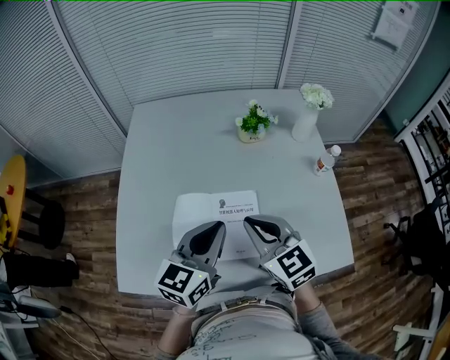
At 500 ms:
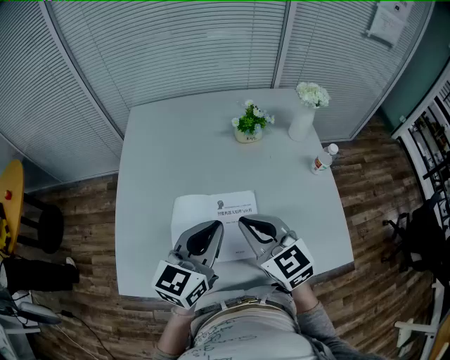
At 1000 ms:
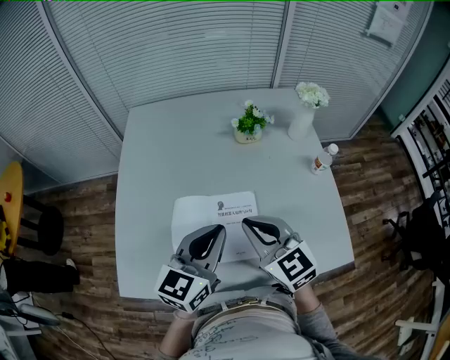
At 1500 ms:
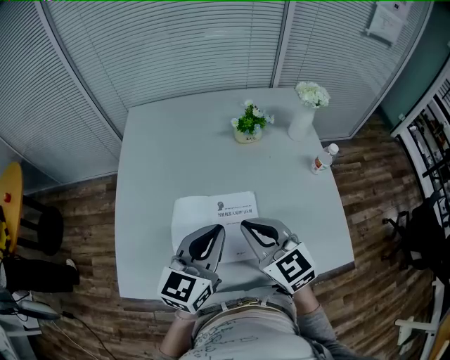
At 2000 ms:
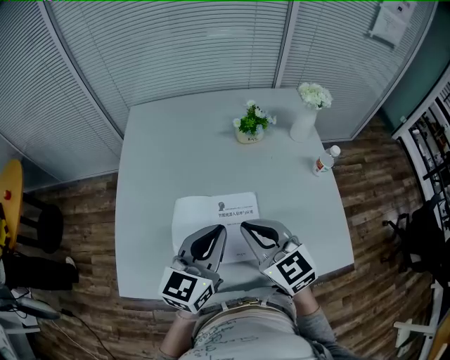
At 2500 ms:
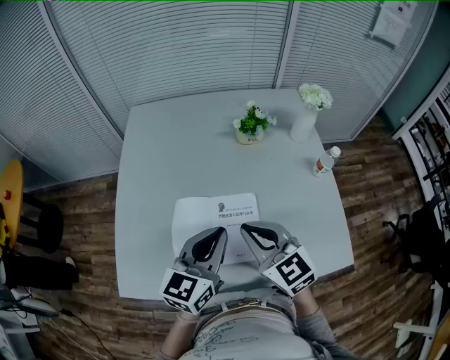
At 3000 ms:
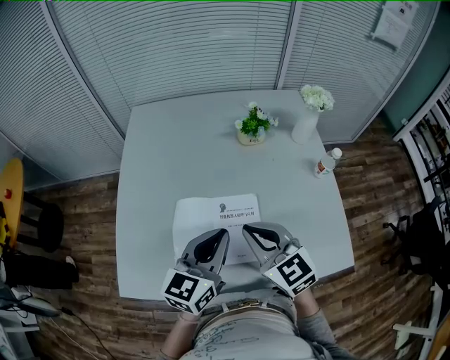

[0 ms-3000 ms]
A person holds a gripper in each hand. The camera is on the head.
0 ms to 3000 ms: The grippers move only a little.

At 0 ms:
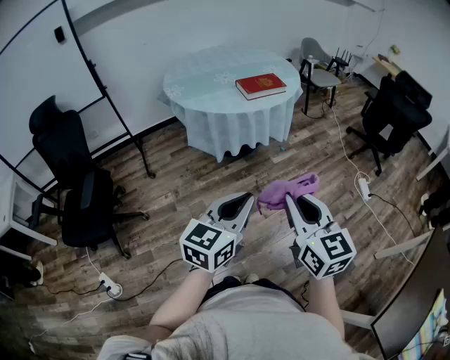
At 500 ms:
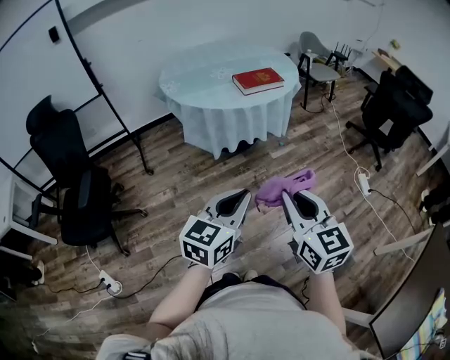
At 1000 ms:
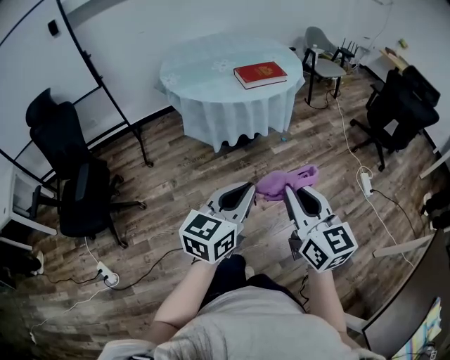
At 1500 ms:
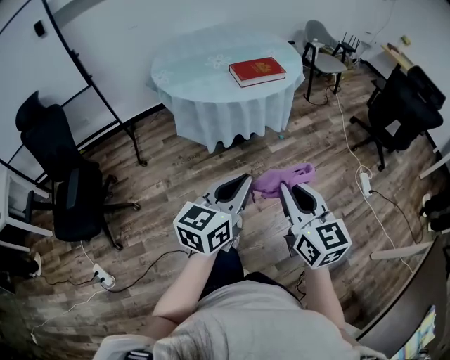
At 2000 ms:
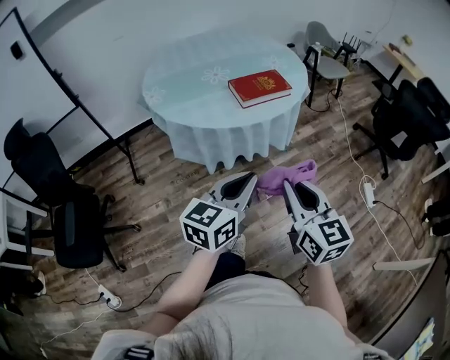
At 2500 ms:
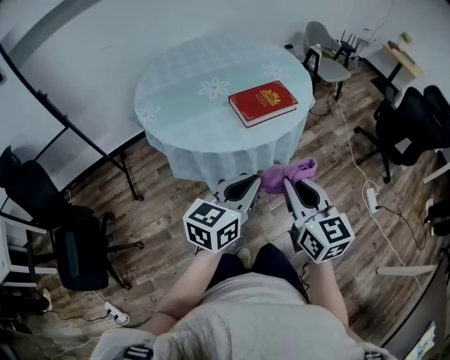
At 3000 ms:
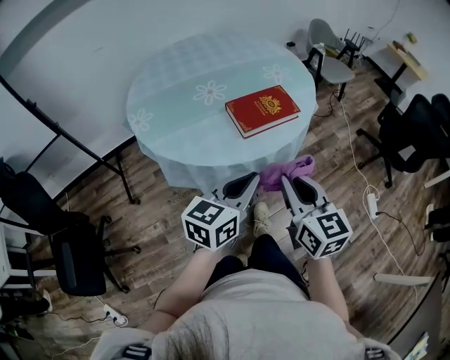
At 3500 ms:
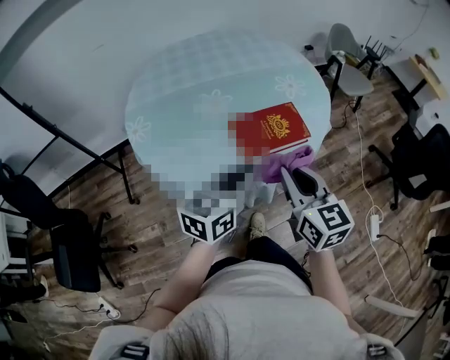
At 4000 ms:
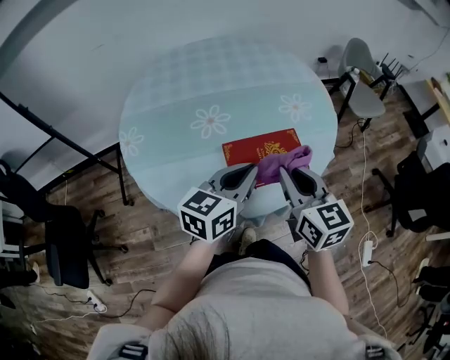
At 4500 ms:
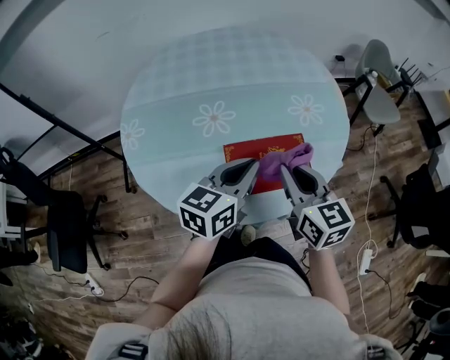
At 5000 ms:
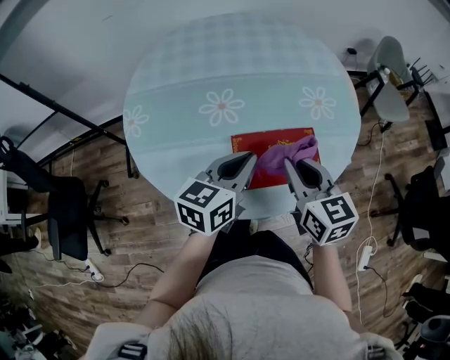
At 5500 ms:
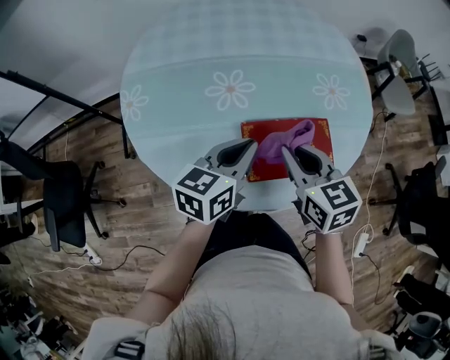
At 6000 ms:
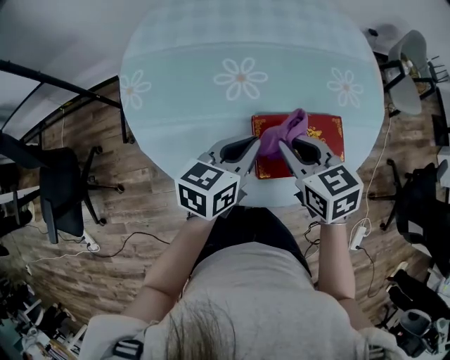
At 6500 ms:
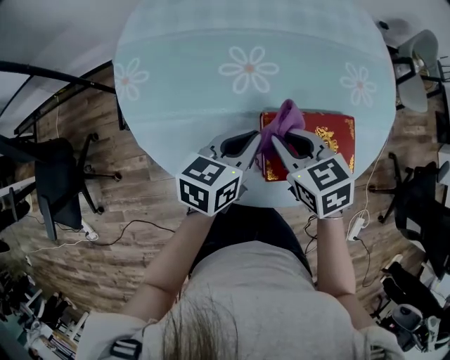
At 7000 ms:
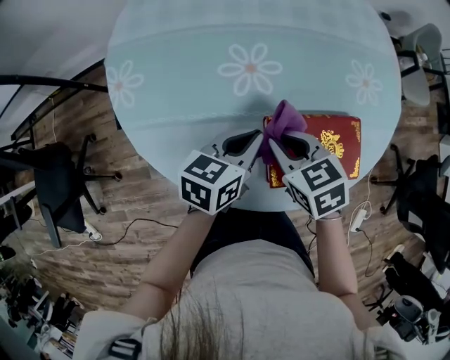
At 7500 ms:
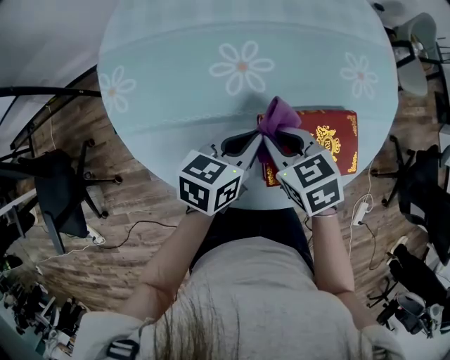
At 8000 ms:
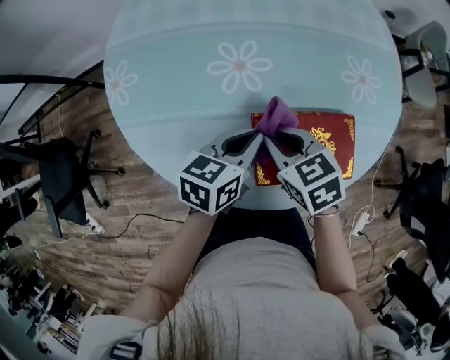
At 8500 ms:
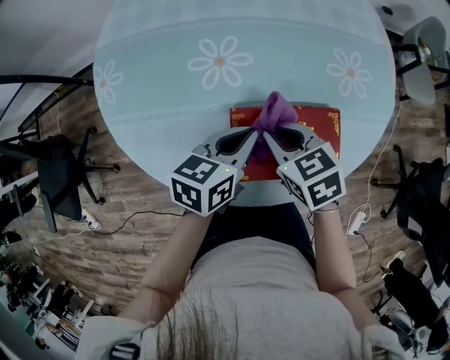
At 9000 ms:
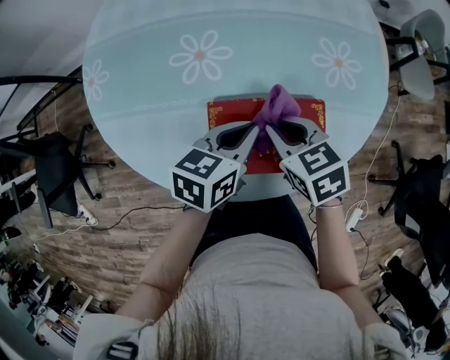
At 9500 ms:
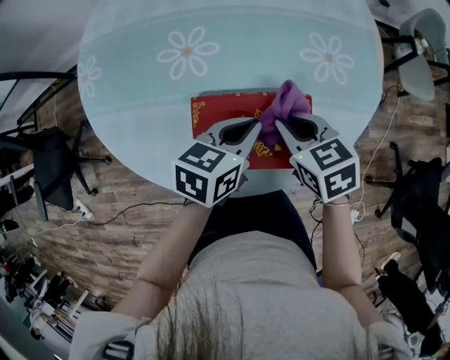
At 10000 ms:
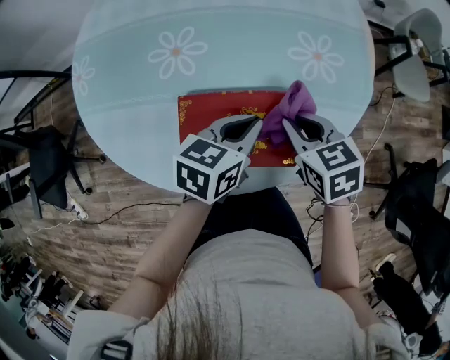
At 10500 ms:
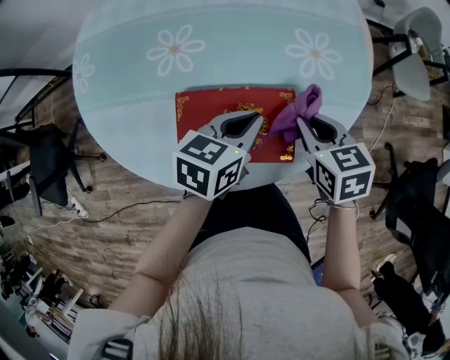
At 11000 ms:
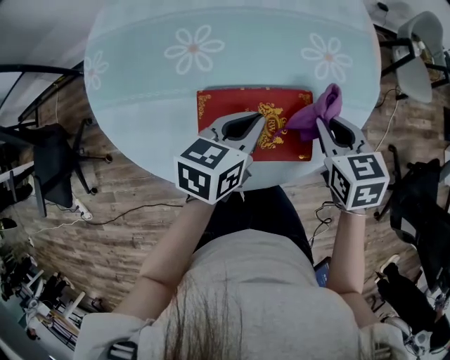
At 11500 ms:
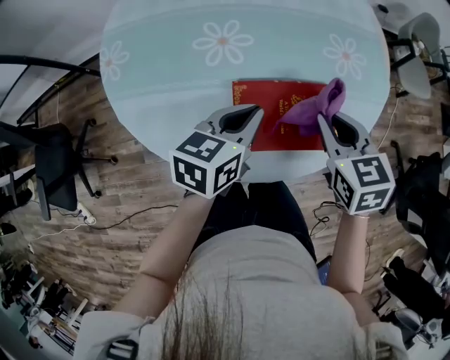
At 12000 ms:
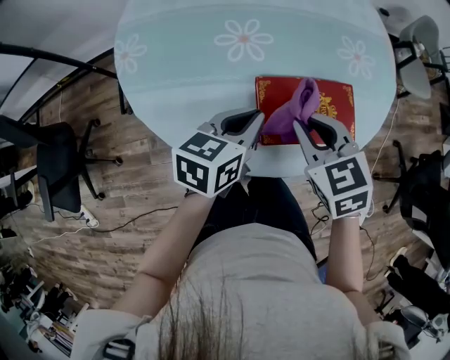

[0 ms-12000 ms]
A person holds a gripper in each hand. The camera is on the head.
0 ms to 2000 ms: Both grippers travel together forward, some 25 cm.
2000 ms to 4000 ms: The pair of grippers is taken forward, approximately 40 cm.
4000 ms to 6000 ms: The left gripper moves downward, to the left and forward, approximately 15 cm; the right gripper shifts some 15 cm to the left, downward and forward, and swivels approximately 30 degrees.
6000 ms to 8000 ms: Both grippers travel together downward, about 5 cm.
8000 ms to 10000 ms: Both grippers move to the right, roughly 20 cm.
10000 ms to 12000 ms: The left gripper travels to the left and backward by roughly 20 cm, while the right gripper heads to the left, backward and upward, covering approximately 20 cm.

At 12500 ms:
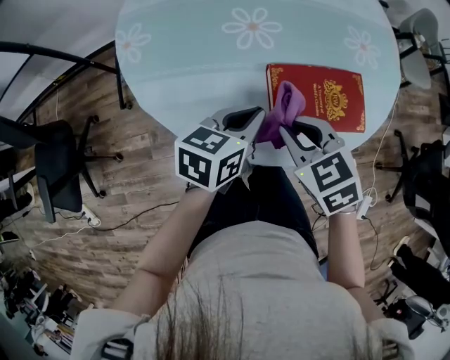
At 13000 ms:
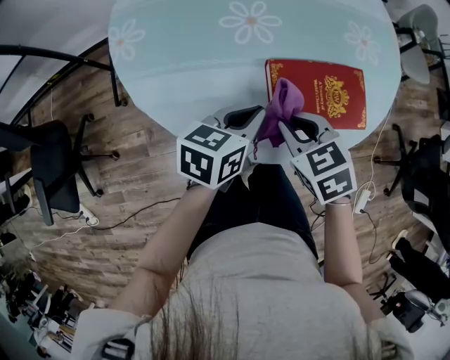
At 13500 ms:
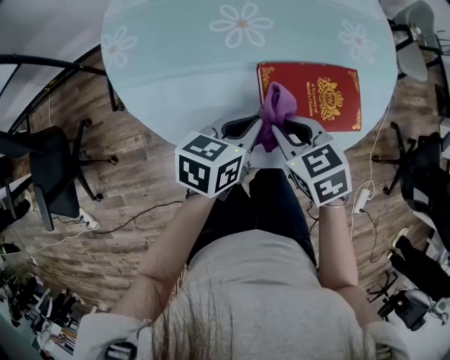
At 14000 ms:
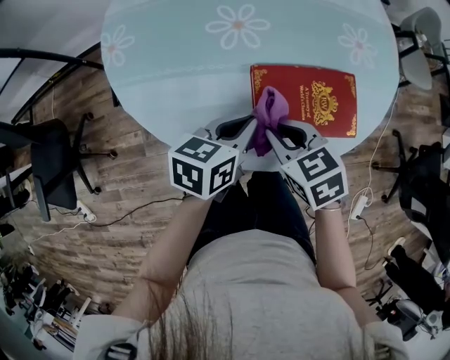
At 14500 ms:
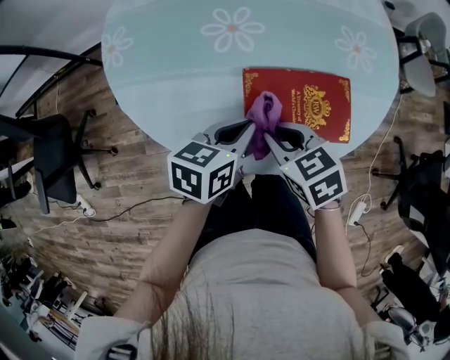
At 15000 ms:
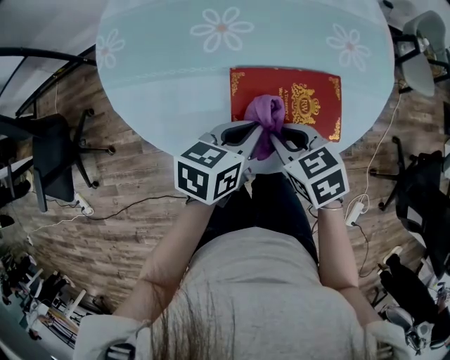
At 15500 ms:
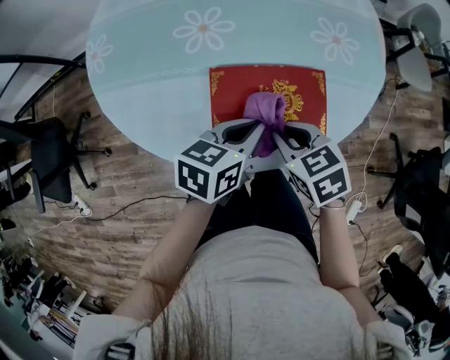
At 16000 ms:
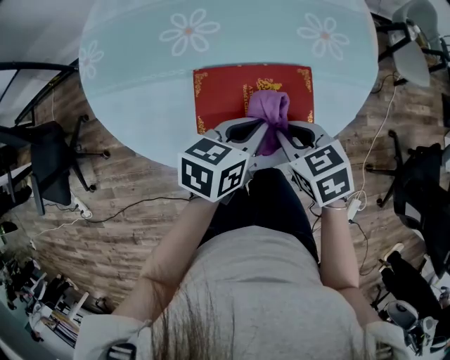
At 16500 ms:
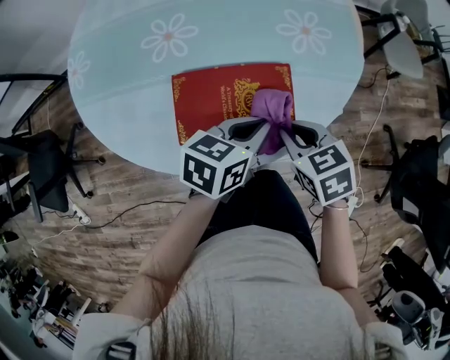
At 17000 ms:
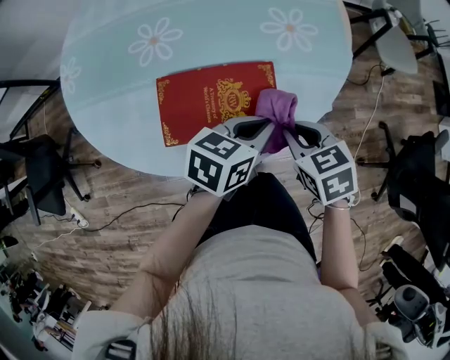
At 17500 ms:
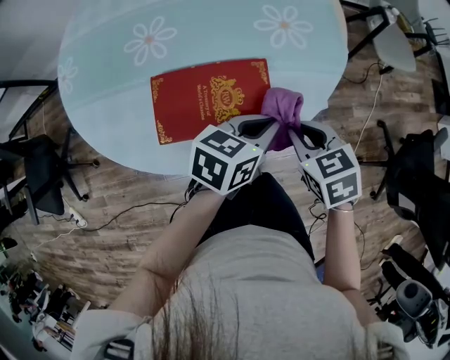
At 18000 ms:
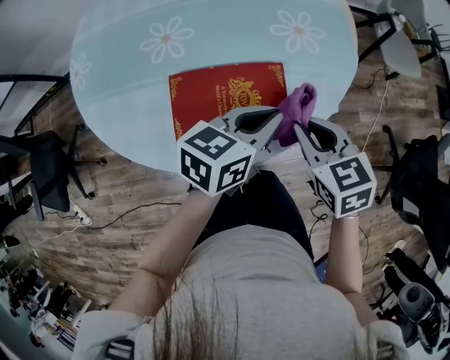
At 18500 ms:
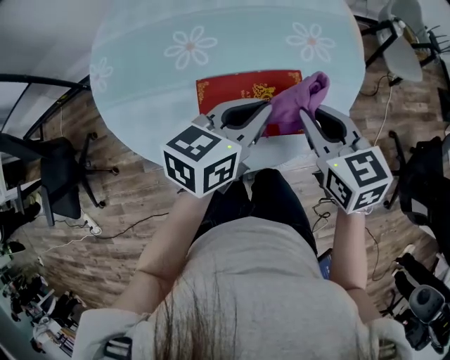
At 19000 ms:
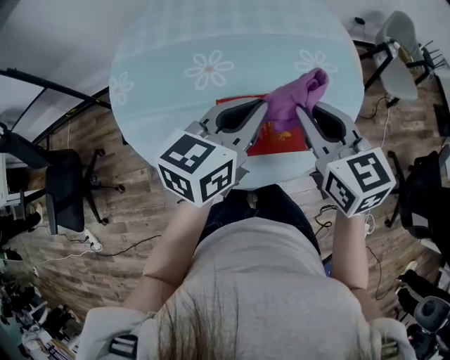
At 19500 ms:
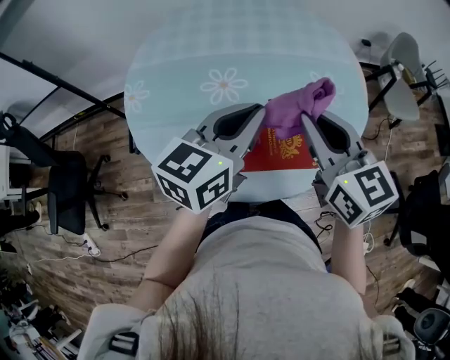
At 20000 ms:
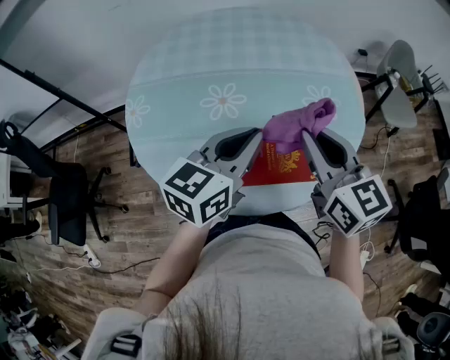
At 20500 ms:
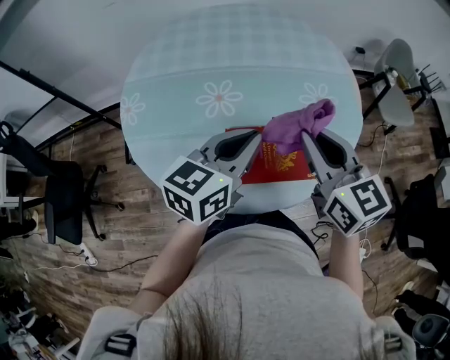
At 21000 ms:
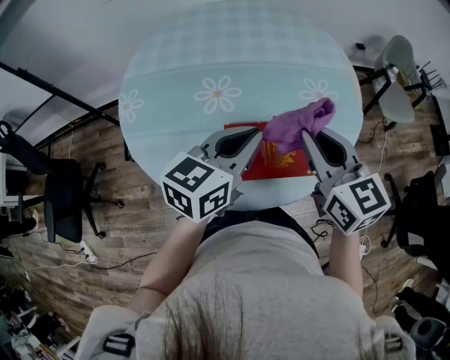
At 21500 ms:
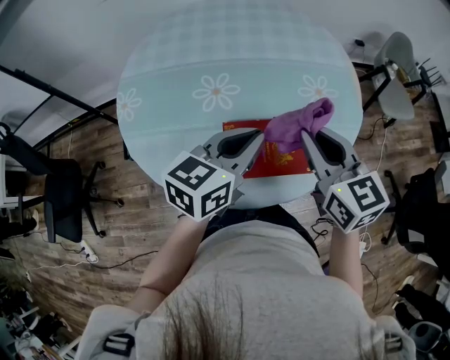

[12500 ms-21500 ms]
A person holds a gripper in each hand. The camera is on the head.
12500 ms to 14500 ms: The left gripper goes roughly 5 cm to the right, while the right gripper shifts by roughly 5 cm.
14500 ms to 17000 ms: Both grippers travel together to the right, roughly 25 cm.
17000 ms to 19500 ms: The grippers both shift upward and to the left by roughly 25 cm. The left gripper rotates approximately 30 degrees, while the right gripper angles its fingers upward, by about 40 degrees.
19500 ms to 21500 ms: The left gripper travels downward by roughly 5 cm.

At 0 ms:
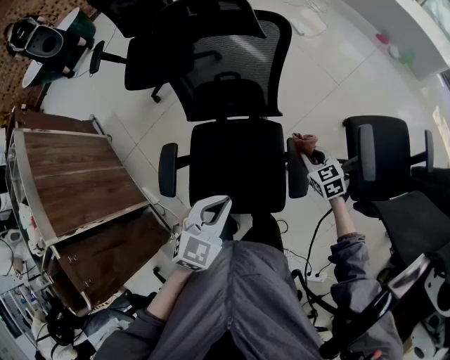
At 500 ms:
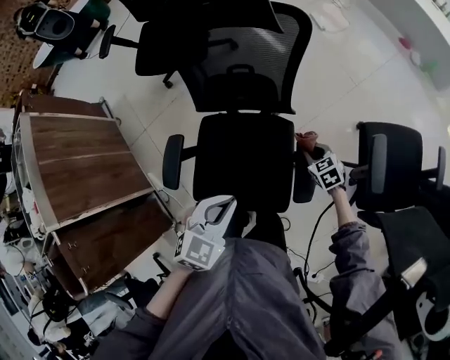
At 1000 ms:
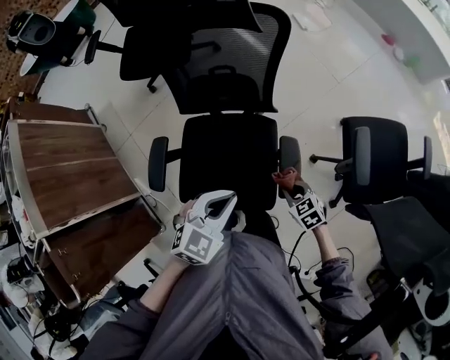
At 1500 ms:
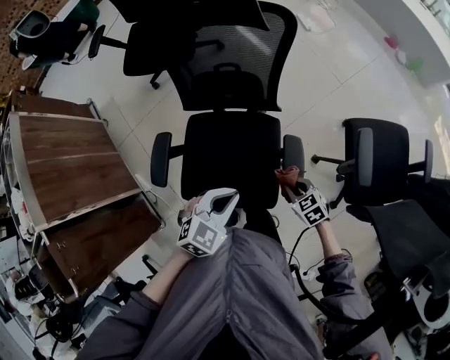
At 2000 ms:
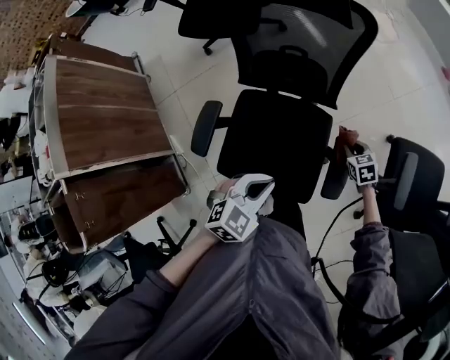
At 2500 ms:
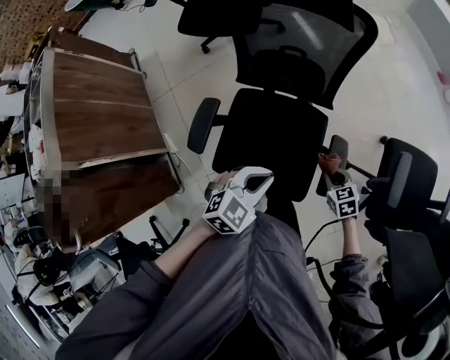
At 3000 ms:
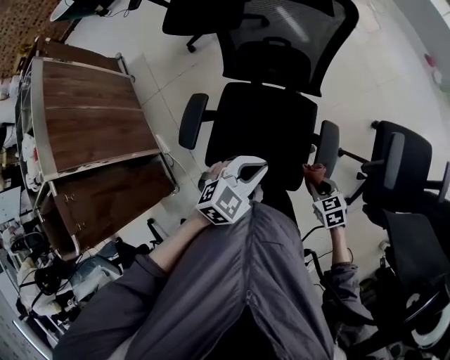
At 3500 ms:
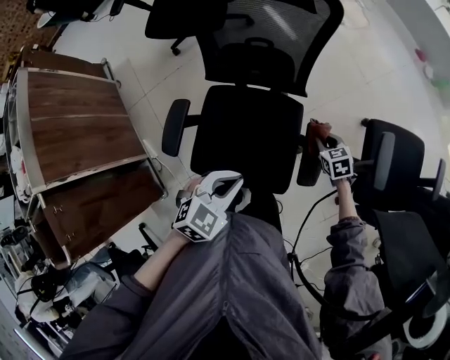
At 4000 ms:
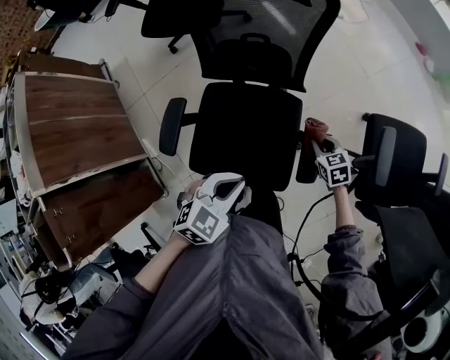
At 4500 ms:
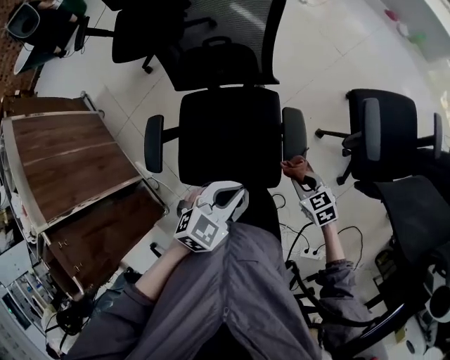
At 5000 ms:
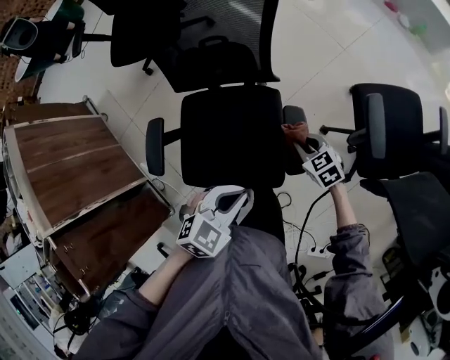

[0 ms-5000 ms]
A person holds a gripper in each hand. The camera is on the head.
0 ms to 2500 ms: The left gripper is displaced downward by some 5 cm. Meanwhile the right gripper swings forward and backward, approximately 15 cm each way, with 2 reversals.
2500 ms to 5000 ms: The left gripper travels to the right by approximately 10 cm. The right gripper swings forward and backward, some 20 cm each way, with 3 reversals.
